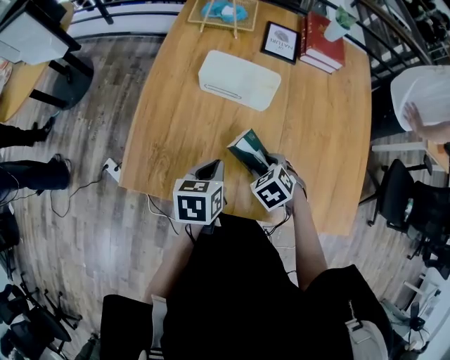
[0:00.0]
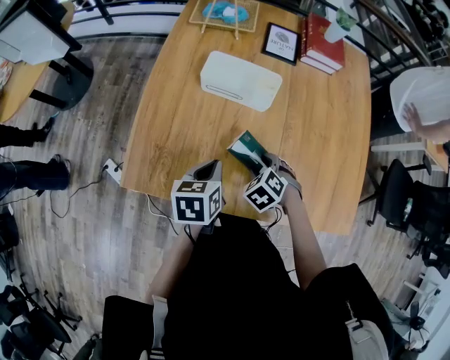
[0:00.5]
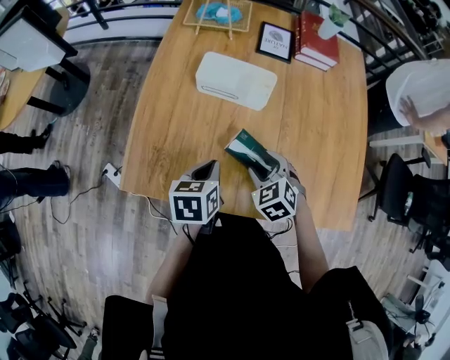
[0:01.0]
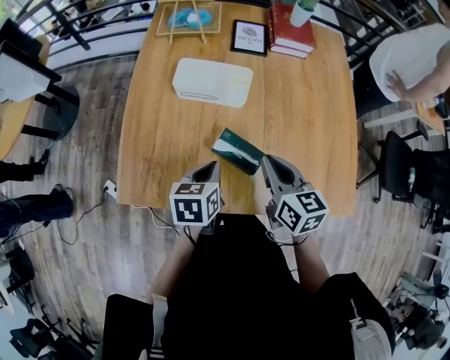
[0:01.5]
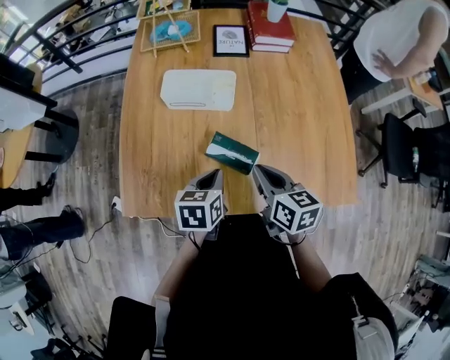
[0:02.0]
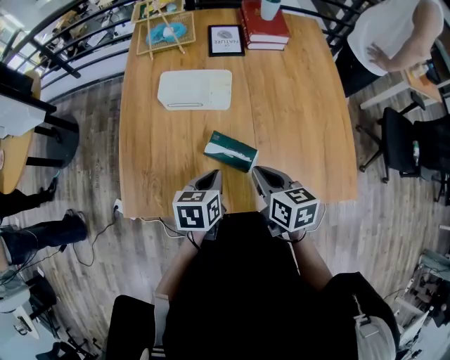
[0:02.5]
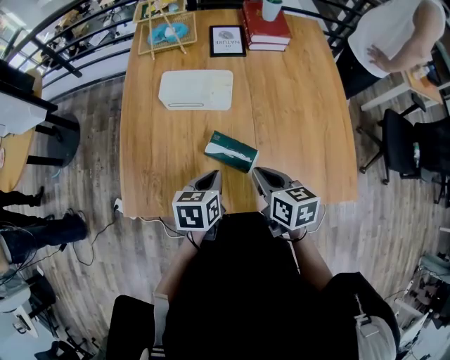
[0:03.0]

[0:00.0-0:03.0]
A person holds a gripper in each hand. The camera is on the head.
0:00.0 to 0:01.5: The right gripper shifts some 15 cm upward, points its fingers some 50 degrees further upward, and closes up.
0:01.5 to 0:03.0: The right gripper shifts by approximately 5 cm.

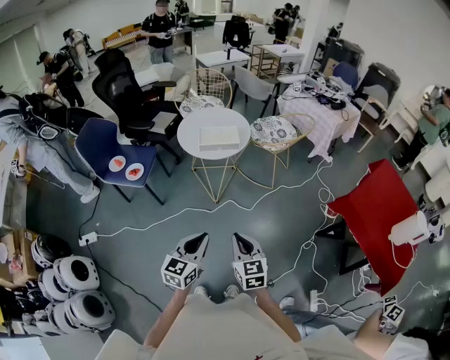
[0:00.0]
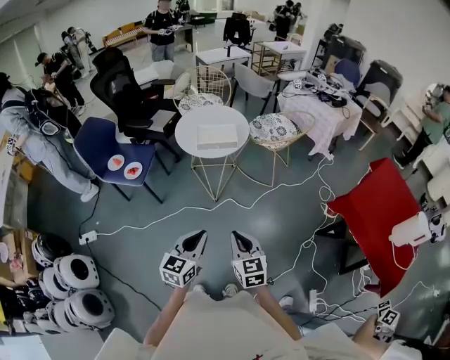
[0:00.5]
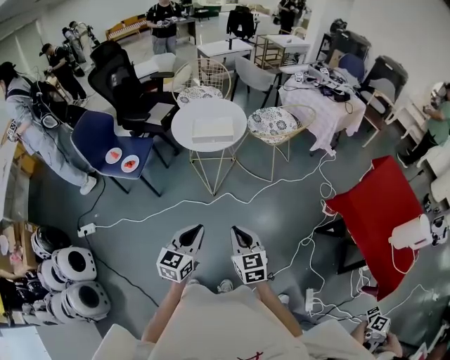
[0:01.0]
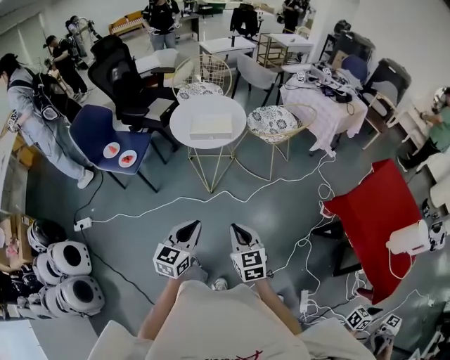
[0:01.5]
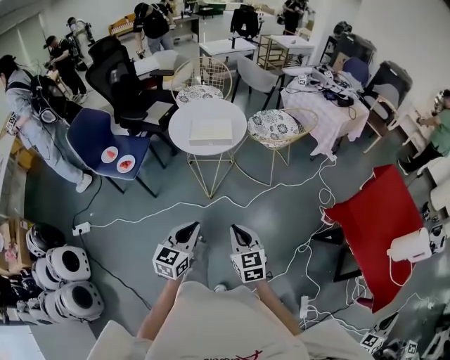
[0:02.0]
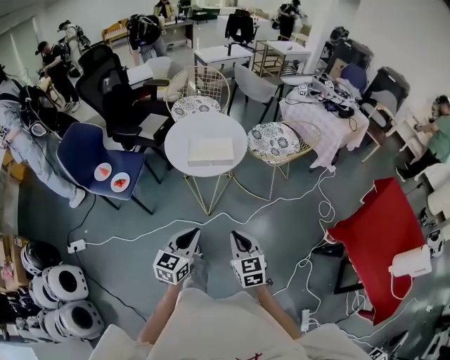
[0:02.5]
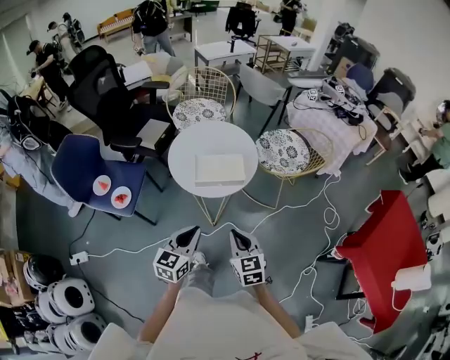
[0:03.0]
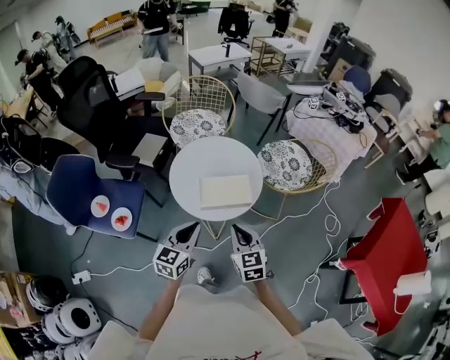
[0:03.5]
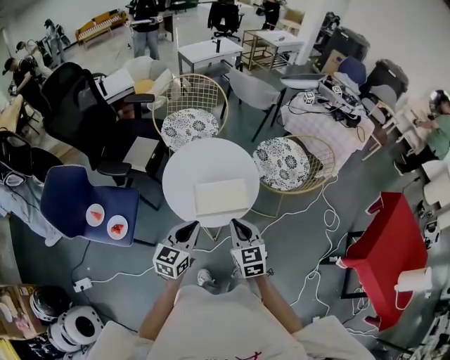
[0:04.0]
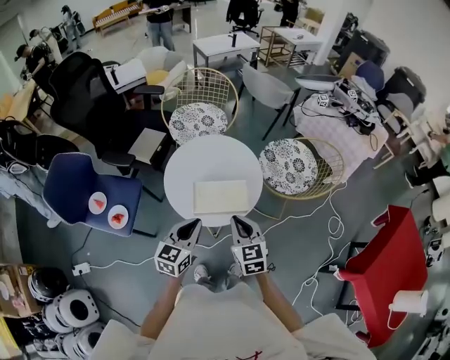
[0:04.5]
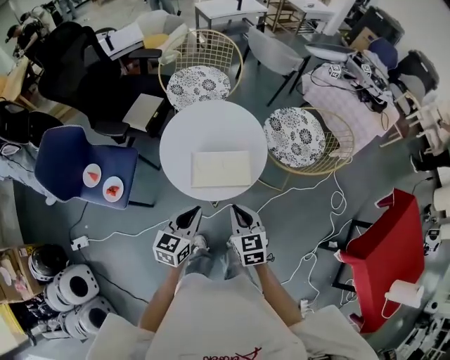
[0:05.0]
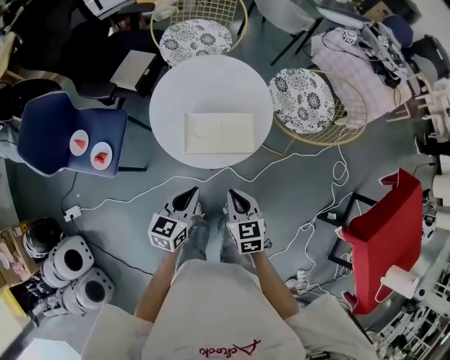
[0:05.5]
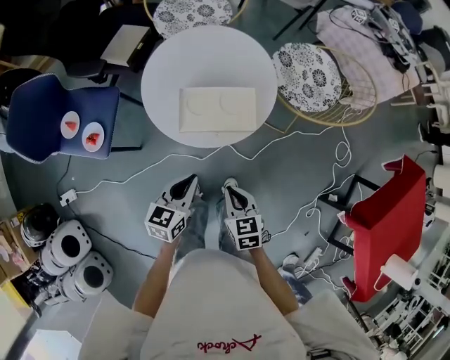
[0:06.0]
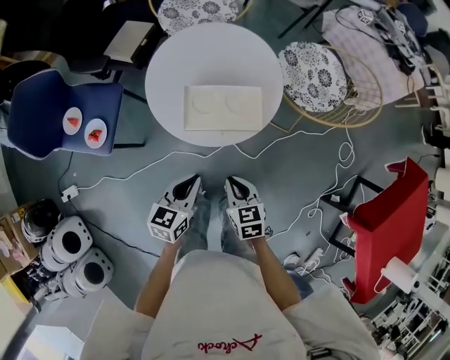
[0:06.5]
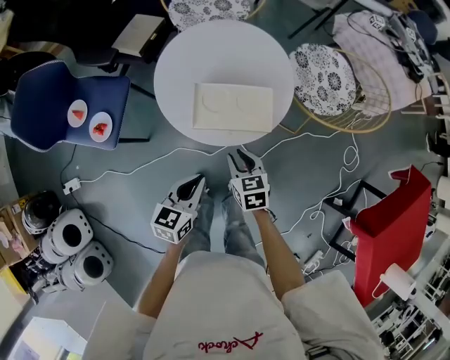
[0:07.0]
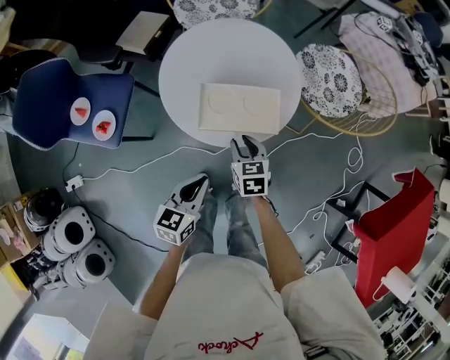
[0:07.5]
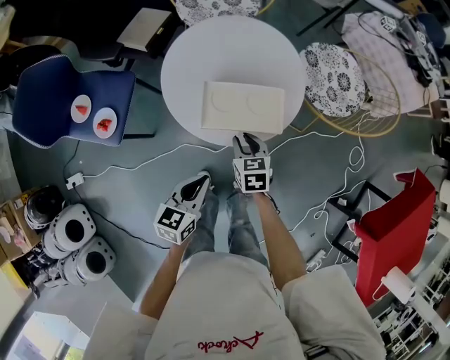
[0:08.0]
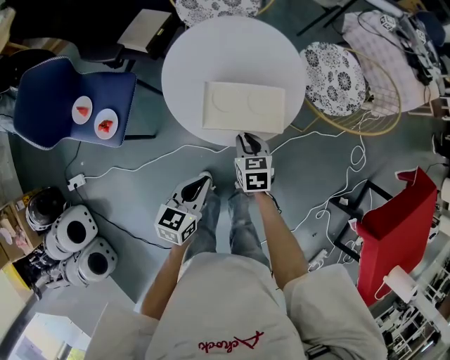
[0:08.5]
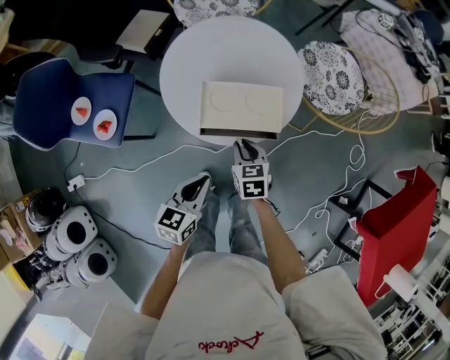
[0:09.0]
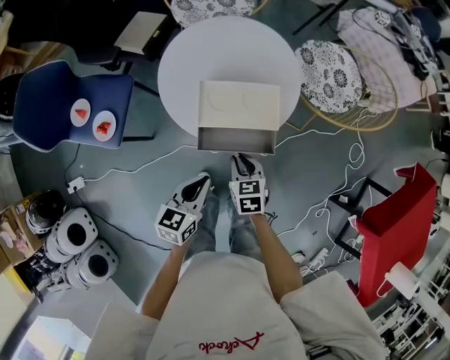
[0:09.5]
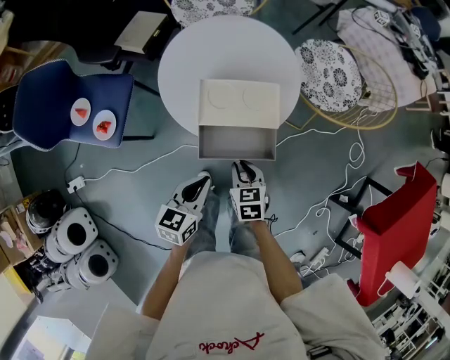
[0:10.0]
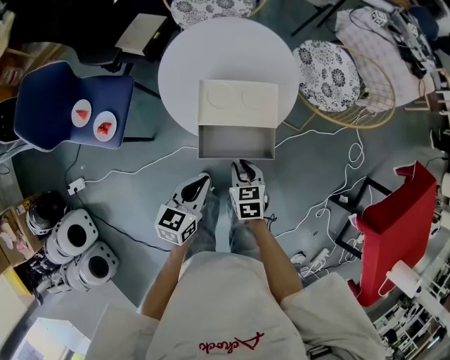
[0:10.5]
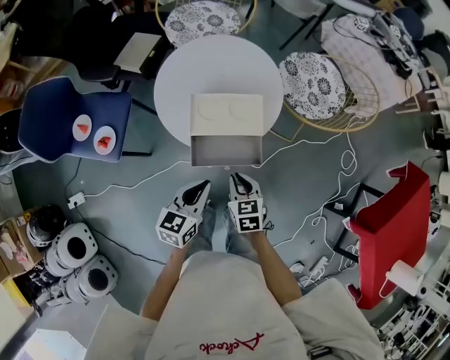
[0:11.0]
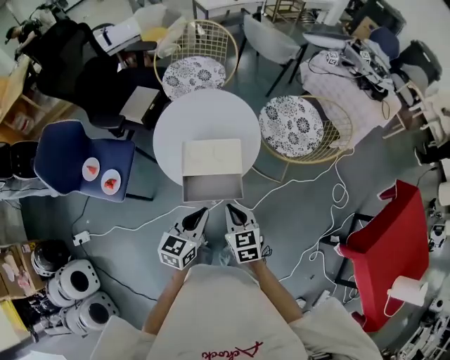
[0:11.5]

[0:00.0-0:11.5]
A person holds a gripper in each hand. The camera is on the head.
0:00.0 to 0:02.0: The left gripper is displaced forward by some 10 cm. The right gripper heads forward and to the right, covering approximately 10 cm.
0:02.0 to 0:04.0: The two grippers travel together, forward, approximately 40 cm.
0:04.0 to 0:06.0: The right gripper heads downward and backward, covering roughly 20 cm, and rotates roughly 30 degrees. The left gripper shifts roughly 15 cm downward.
0:06.0 to 0:07.5: The right gripper is displaced forward by roughly 15 cm, and opens its fingers.
0:07.5 to 0:09.5: The right gripper moves backward, about 5 cm.
0:09.5 to 0:11.5: The left gripper goes some 10 cm upward and to the right, while the right gripper is displaced upward by approximately 15 cm.

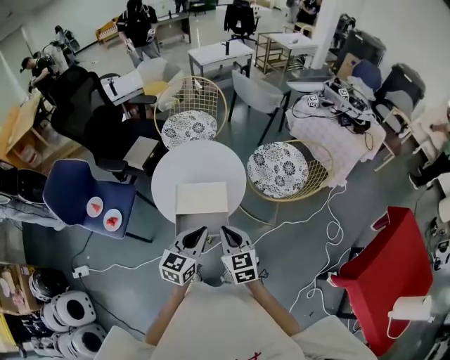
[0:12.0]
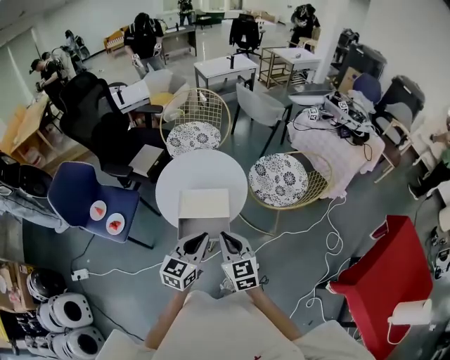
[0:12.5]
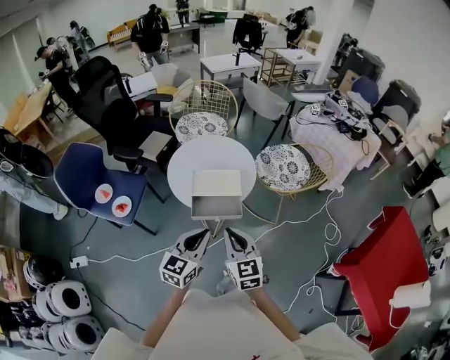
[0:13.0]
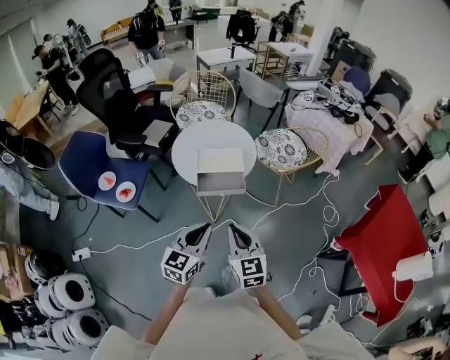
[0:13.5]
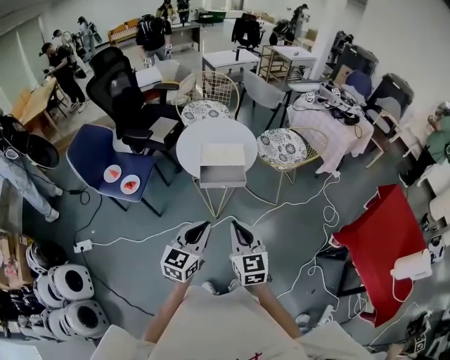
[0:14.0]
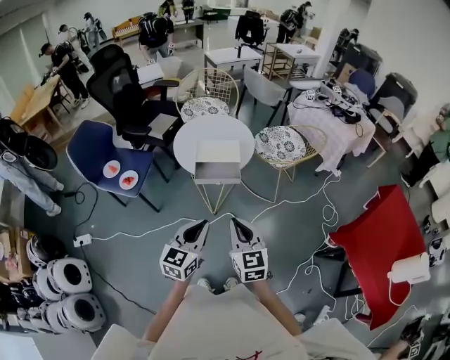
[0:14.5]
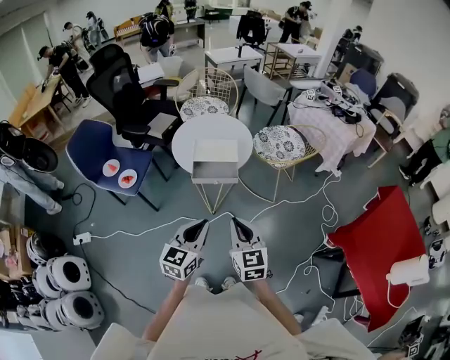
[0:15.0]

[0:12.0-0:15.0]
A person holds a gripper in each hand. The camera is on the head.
0:12.0 to 0:13.5: Both grippers travel together backward, approximately 25 cm.
0:13.5 to 0:15.0: The left gripper heads backward, covering about 5 cm. Meanwhile the right gripper travels to the right by some 5 cm.

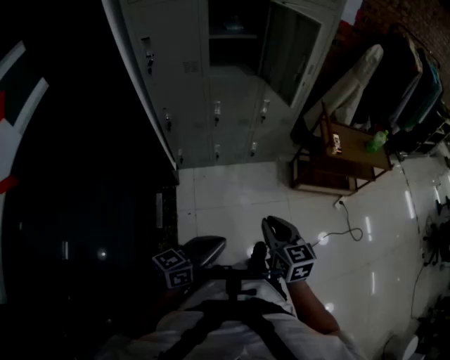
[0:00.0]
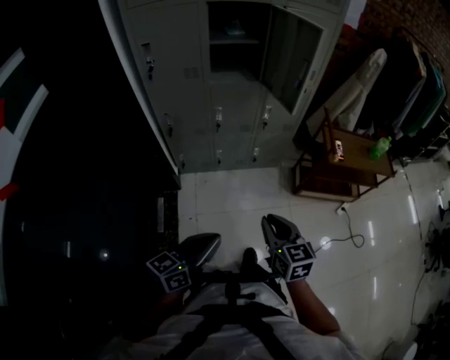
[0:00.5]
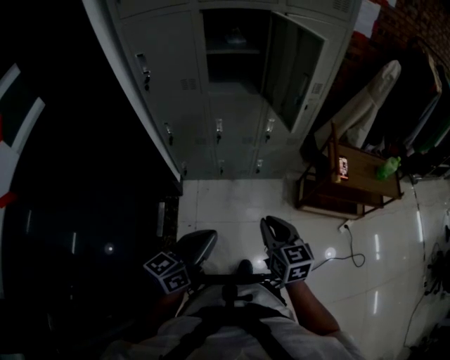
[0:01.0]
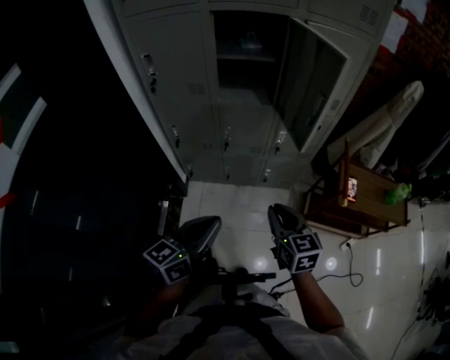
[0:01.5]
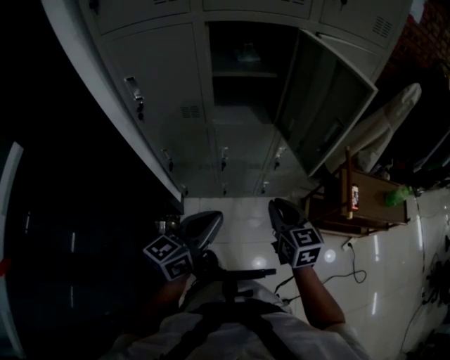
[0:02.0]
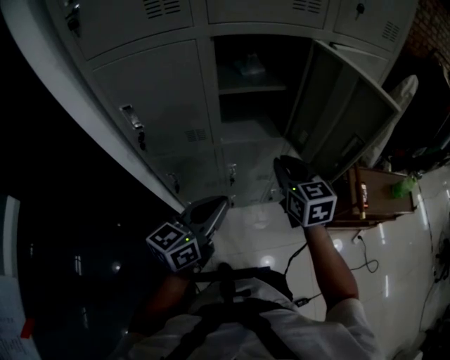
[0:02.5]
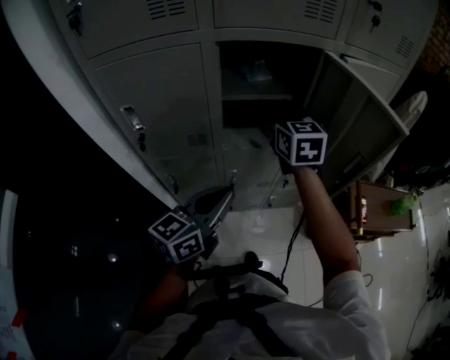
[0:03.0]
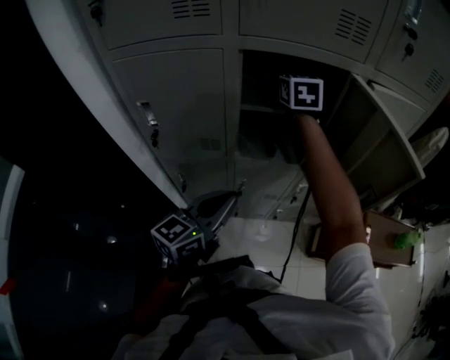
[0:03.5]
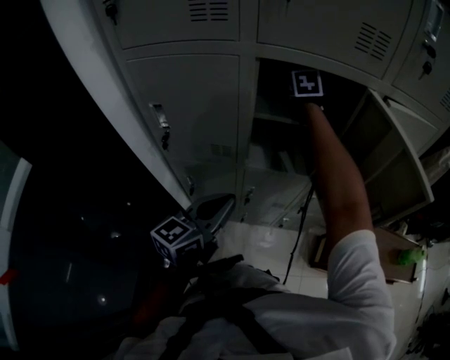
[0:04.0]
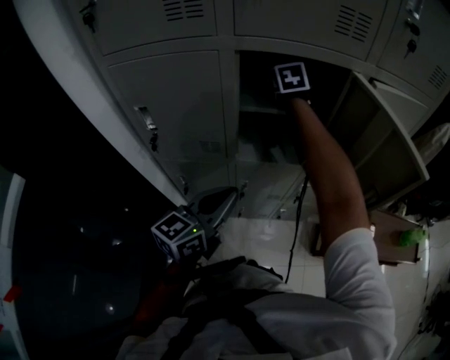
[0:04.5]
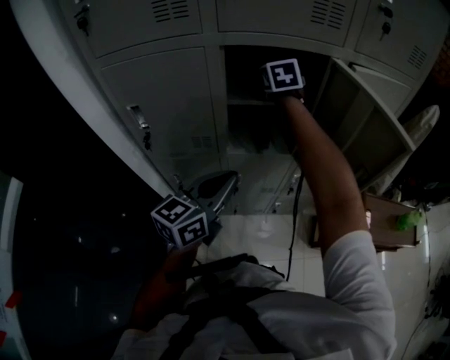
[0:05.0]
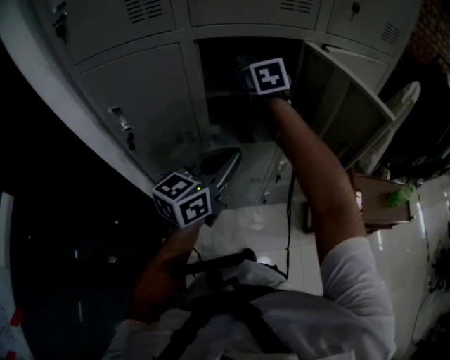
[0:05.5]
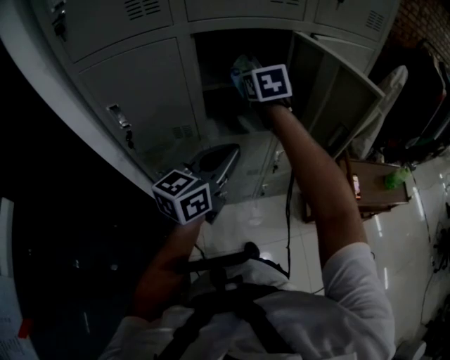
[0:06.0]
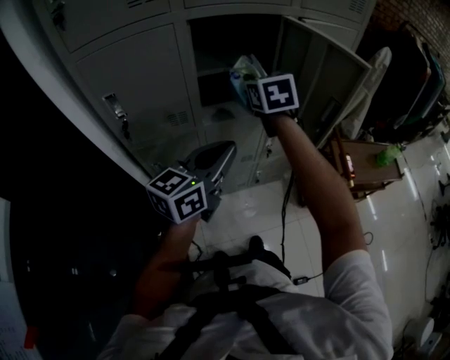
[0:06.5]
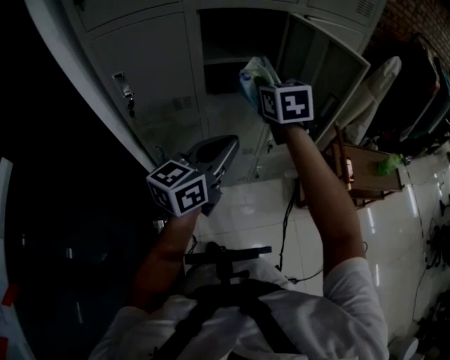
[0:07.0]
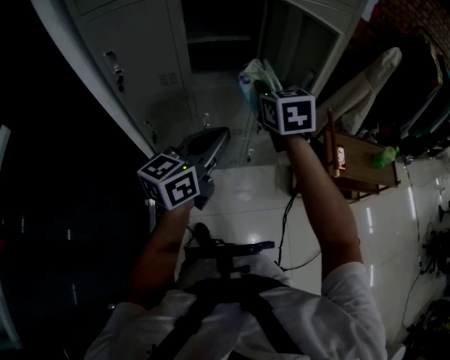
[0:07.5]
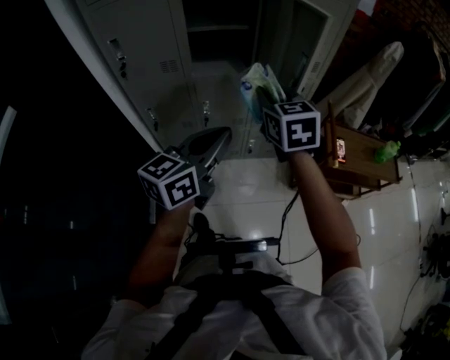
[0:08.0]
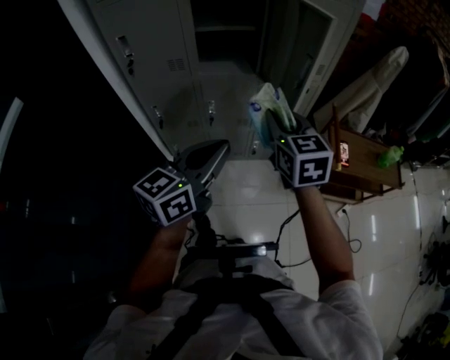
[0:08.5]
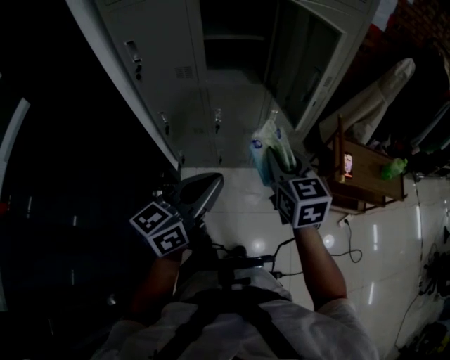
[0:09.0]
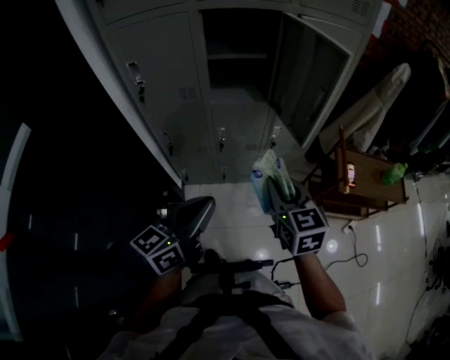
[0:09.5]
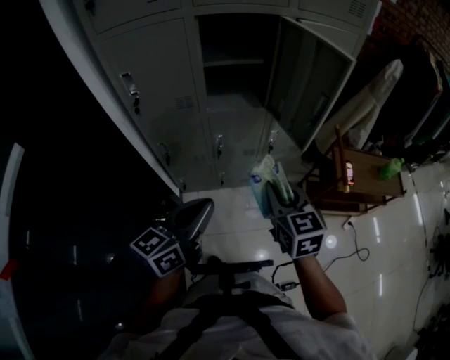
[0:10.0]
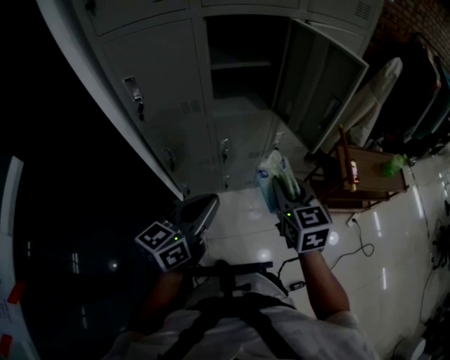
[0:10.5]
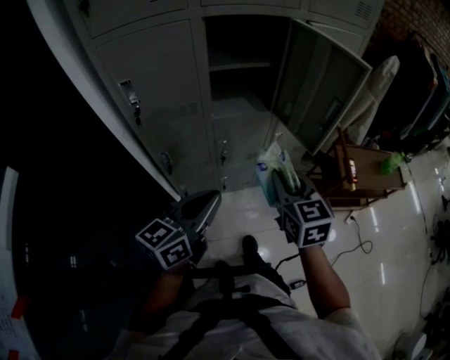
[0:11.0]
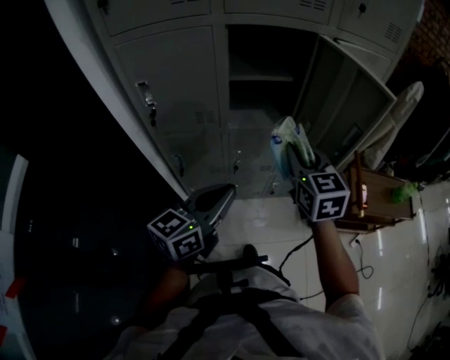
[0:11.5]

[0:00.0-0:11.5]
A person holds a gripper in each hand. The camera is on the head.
0:00.0 to 0:02.0: Both grippers travel together forward, some 35 cm.
0:02.0 to 0:04.0: The left gripper goes roughly 20 cm forward and to the left. Meanwhile the right gripper heads forward, to the left and upward, covering some 60 cm, and opens.
0:04.0 to 0:06.0: The right gripper moves backward and to the right, some 15 cm, and closes up. Meanwhile the left gripper goes some 10 cm to the right and upward.
0:06.0 to 0:07.5: The left gripper goes some 15 cm backward and to the right; the right gripper travels backward and to the right by approximately 25 cm.
0:07.5 to 0:09.5: The right gripper shifts roughly 20 cm backward; the left gripper travels backward by some 10 cm.
0:09.5 to 0:11.5: Both grippers move forward and to the left, approximately 15 cm.
